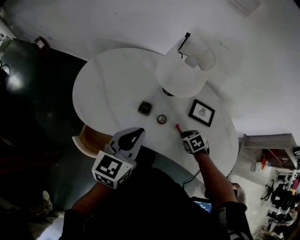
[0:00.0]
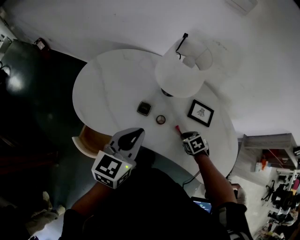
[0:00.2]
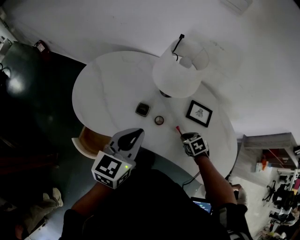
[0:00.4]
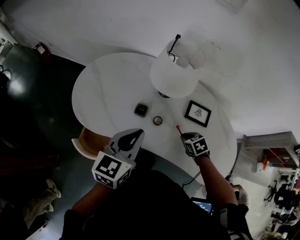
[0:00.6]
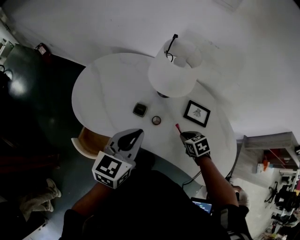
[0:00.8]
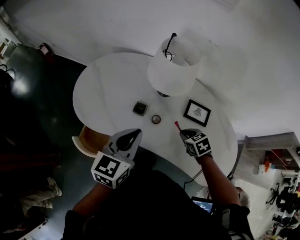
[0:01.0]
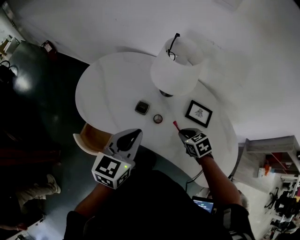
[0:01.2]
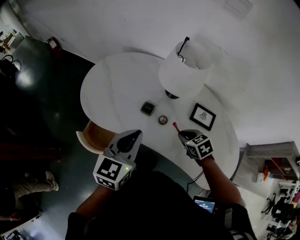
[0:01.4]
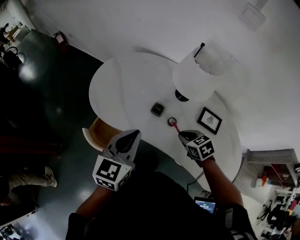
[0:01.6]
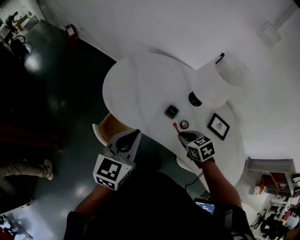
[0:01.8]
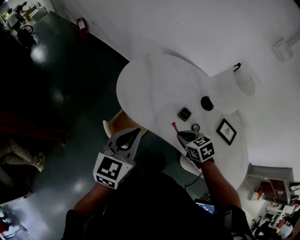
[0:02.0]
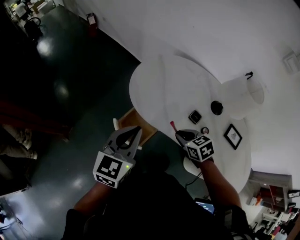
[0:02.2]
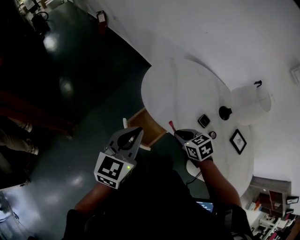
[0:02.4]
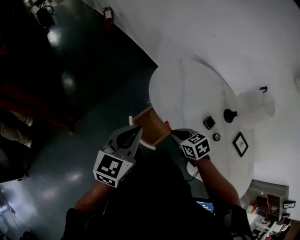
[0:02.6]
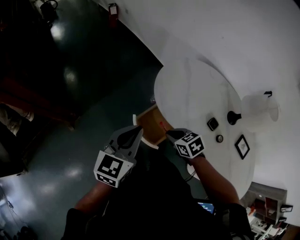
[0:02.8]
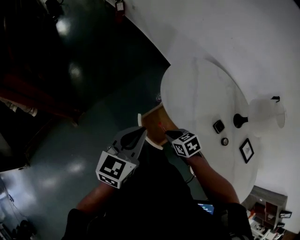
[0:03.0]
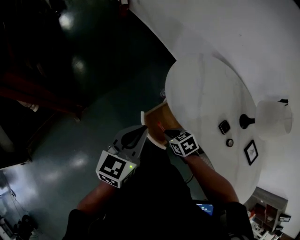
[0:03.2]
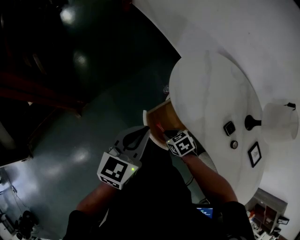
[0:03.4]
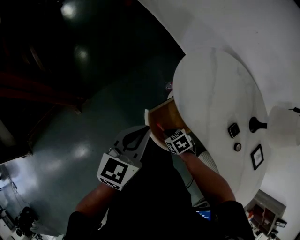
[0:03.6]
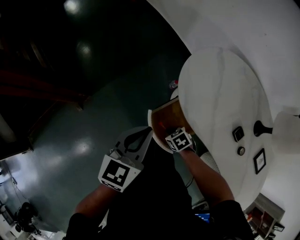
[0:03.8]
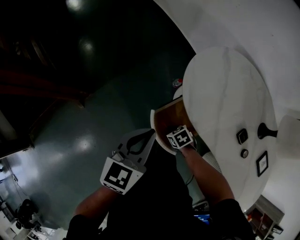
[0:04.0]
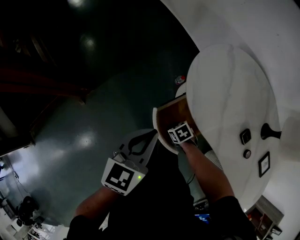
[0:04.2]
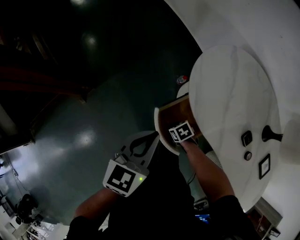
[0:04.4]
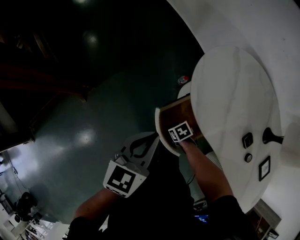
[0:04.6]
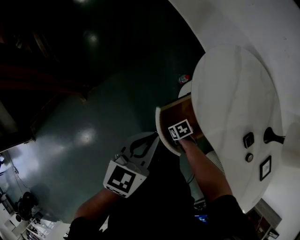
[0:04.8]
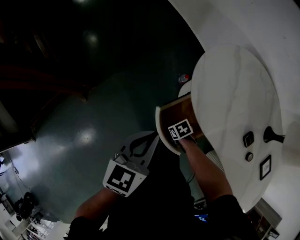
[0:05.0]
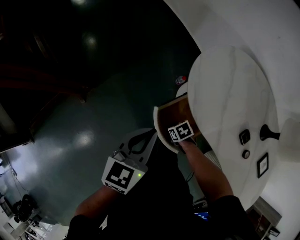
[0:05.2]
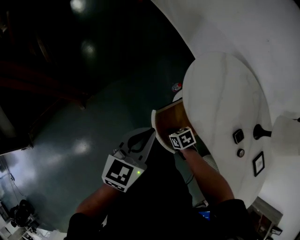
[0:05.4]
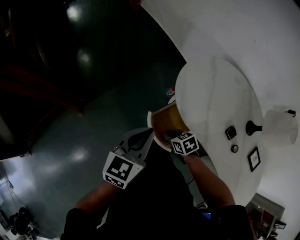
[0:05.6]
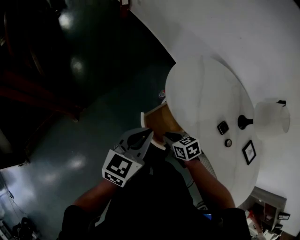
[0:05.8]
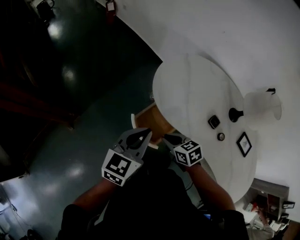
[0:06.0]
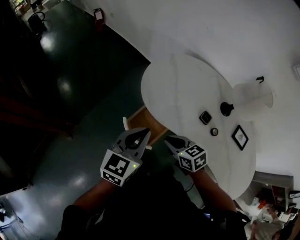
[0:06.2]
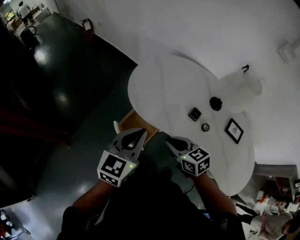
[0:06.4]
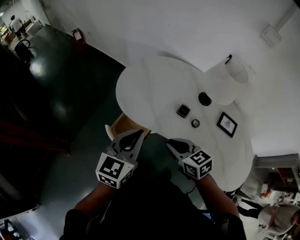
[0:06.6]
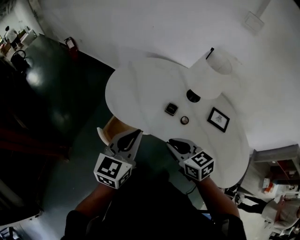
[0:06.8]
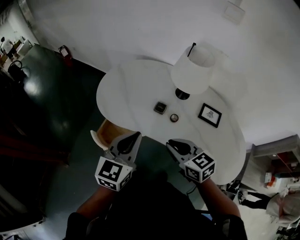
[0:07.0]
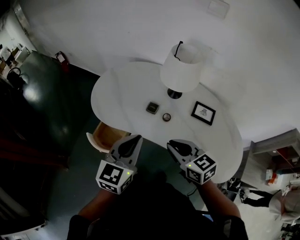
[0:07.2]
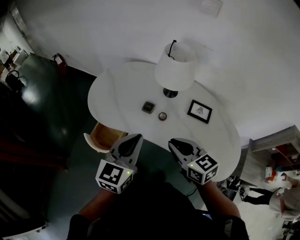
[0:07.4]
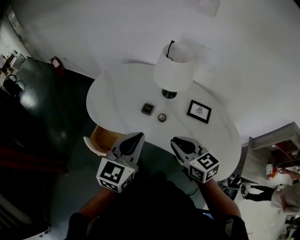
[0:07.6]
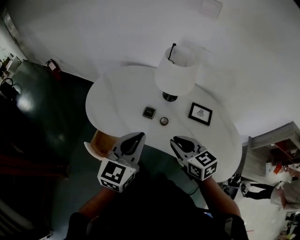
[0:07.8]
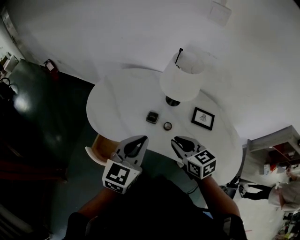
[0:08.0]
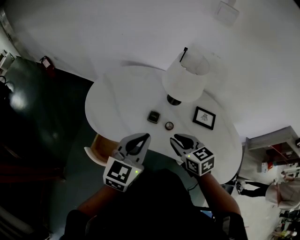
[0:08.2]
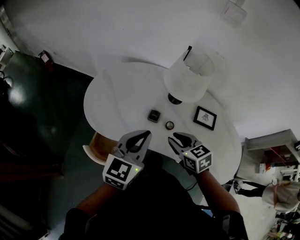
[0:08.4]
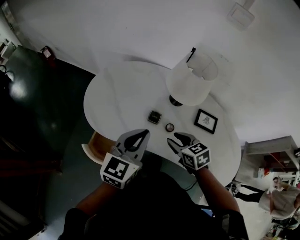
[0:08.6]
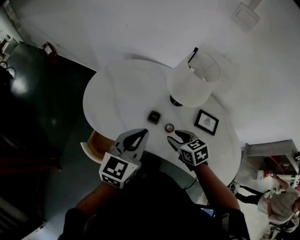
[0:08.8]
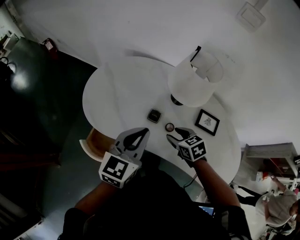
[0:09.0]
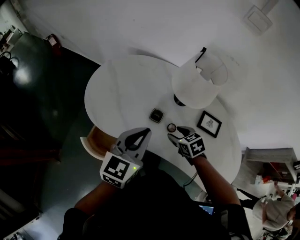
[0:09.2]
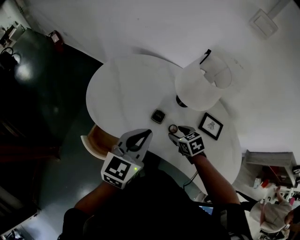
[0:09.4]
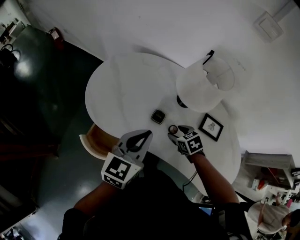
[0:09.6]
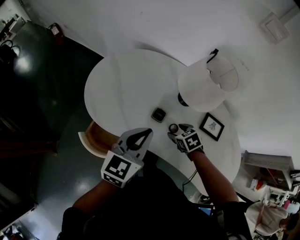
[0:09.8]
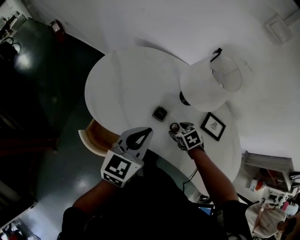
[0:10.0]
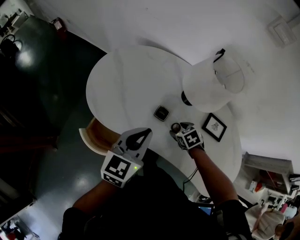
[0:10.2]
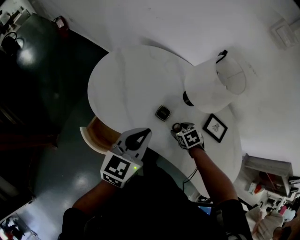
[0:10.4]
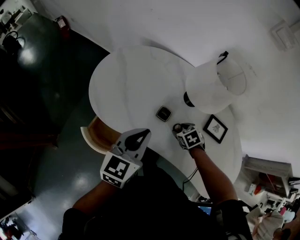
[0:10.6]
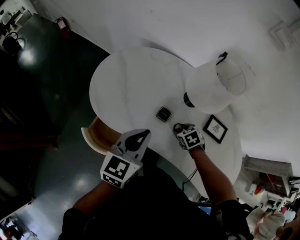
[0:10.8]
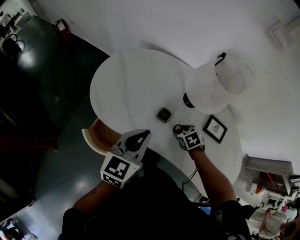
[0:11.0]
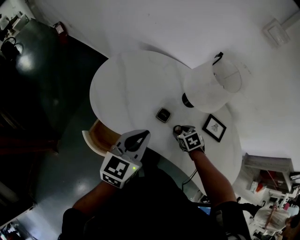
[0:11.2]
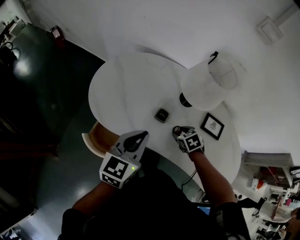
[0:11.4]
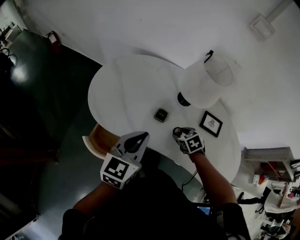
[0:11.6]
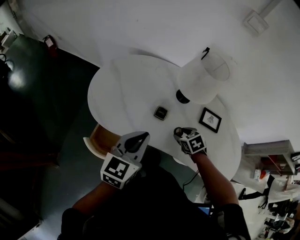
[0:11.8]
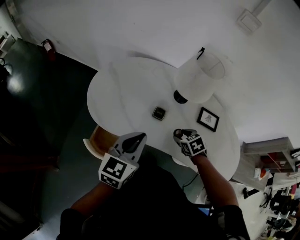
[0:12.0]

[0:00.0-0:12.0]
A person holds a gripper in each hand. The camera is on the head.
0:00.0 to 0:01.6: The right gripper goes some 15 cm upward and to the left, and changes its angle by approximately 20 degrees. The left gripper travels to the left by roughly 5 cm.
0:01.6 to 0:03.0: The right gripper changes place by approximately 40 cm, and turns by some 30 degrees. Meanwhile the left gripper ends up approximately 30 cm from where it was.
0:03.0 to 0:04.4: The right gripper moves downward, roughly 25 cm, and turns by approximately 20 degrees. Meanwhile the left gripper goes roughly 10 cm downward.
0:04.4 to 0:06.0: The right gripper shifts about 25 cm upward, and turns by about 30 degrees; the left gripper travels upward by about 10 cm.
0:06.0 to 0:07.6: The left gripper ends up some 35 cm from where it was, and changes its angle by approximately 20 degrees. The right gripper changes place by some 40 cm, and changes its angle by about 40 degrees.
0:07.6 to 0:09.0: The left gripper shifts some 10 cm forward. The right gripper travels forward and downward by roughly 20 cm, changes its angle by about 30 degrees, and opens its fingers.
0:09.0 to 0:10.4: The right gripper goes roughly 10 cm downward, and changes its angle by some 20 degrees.
0:10.4 to 0:12.0: The right gripper travels upward and backward by approximately 10 cm. The left gripper moves roughly 5 cm.

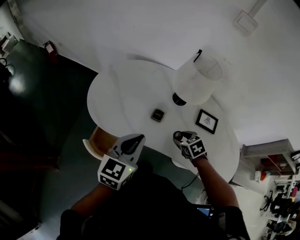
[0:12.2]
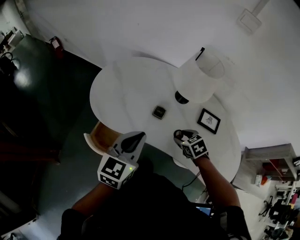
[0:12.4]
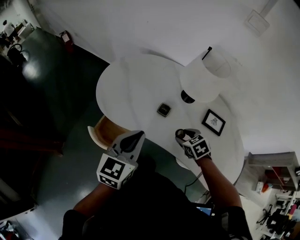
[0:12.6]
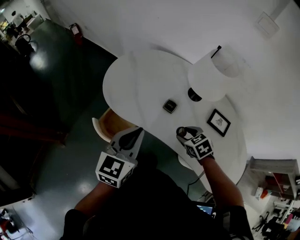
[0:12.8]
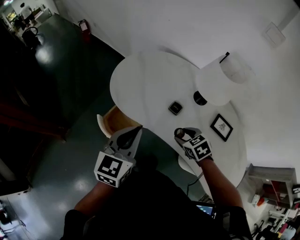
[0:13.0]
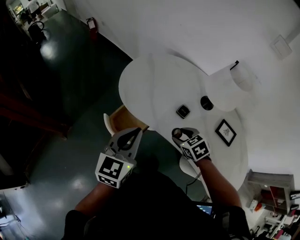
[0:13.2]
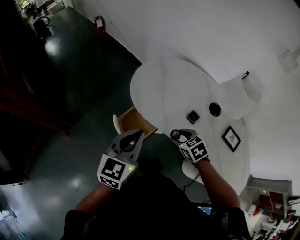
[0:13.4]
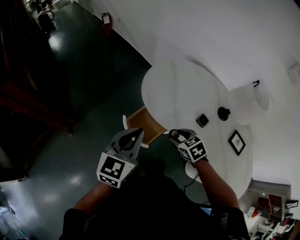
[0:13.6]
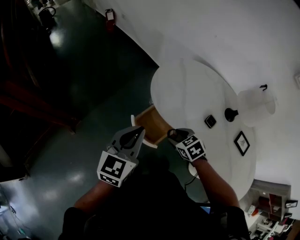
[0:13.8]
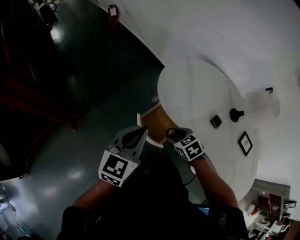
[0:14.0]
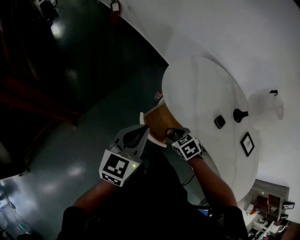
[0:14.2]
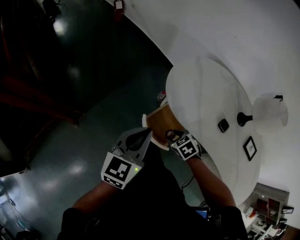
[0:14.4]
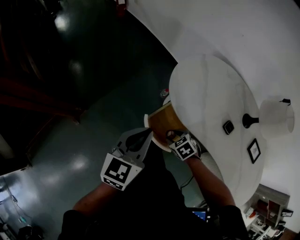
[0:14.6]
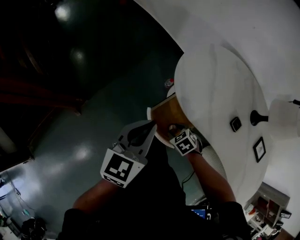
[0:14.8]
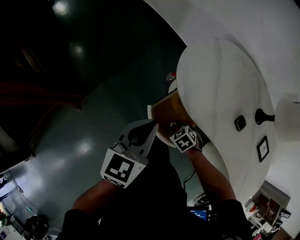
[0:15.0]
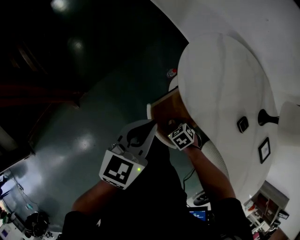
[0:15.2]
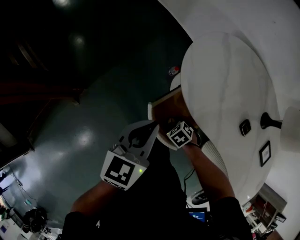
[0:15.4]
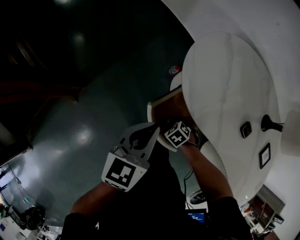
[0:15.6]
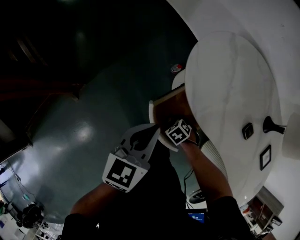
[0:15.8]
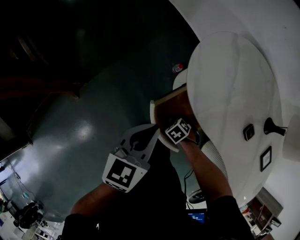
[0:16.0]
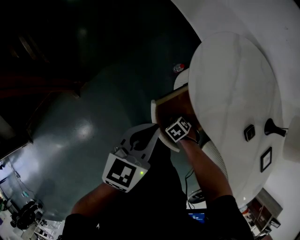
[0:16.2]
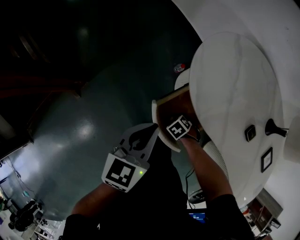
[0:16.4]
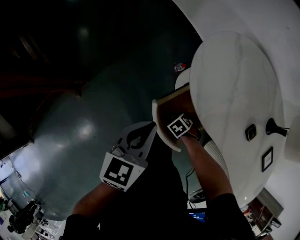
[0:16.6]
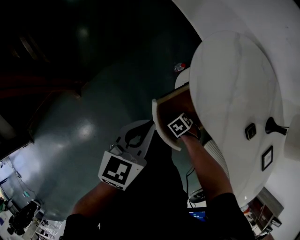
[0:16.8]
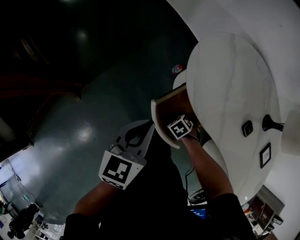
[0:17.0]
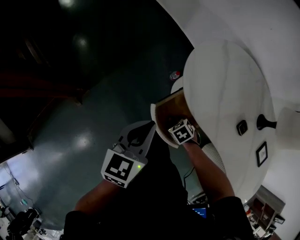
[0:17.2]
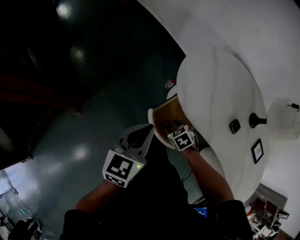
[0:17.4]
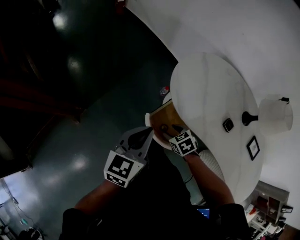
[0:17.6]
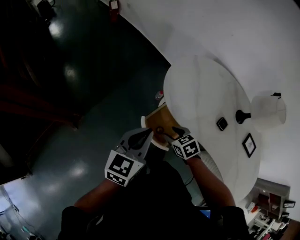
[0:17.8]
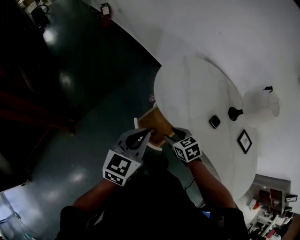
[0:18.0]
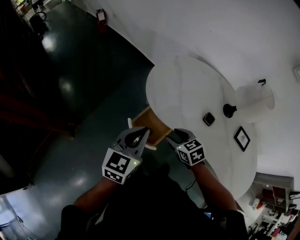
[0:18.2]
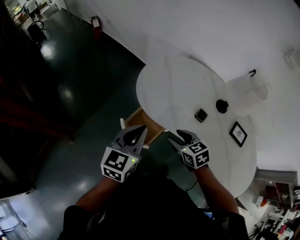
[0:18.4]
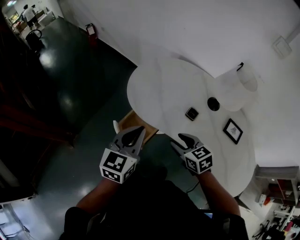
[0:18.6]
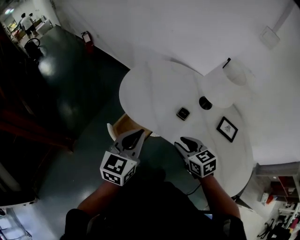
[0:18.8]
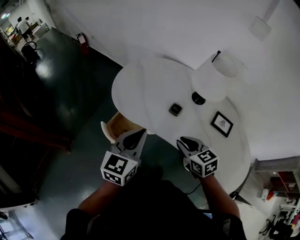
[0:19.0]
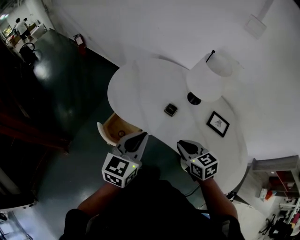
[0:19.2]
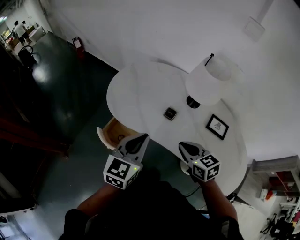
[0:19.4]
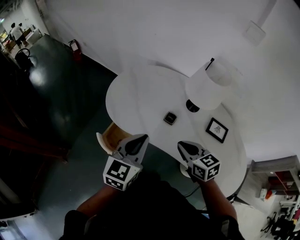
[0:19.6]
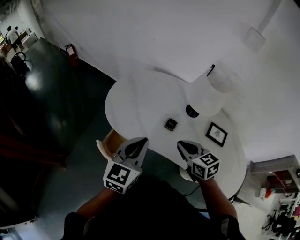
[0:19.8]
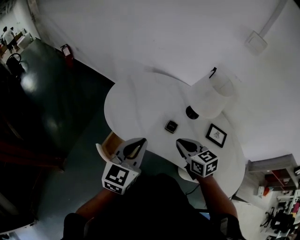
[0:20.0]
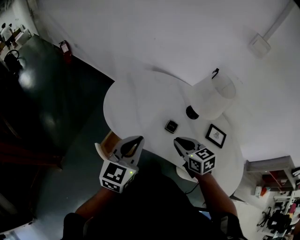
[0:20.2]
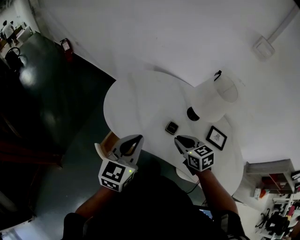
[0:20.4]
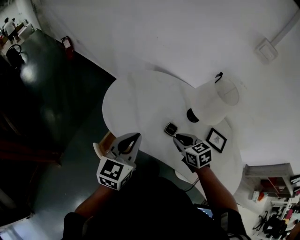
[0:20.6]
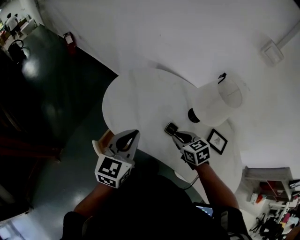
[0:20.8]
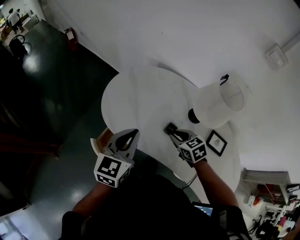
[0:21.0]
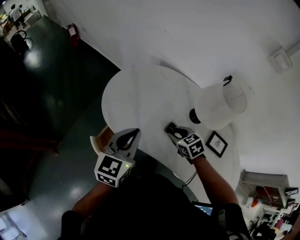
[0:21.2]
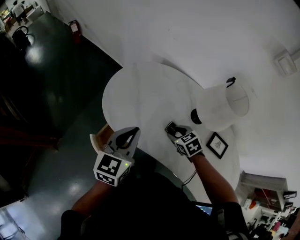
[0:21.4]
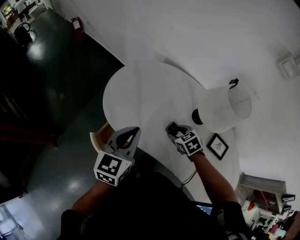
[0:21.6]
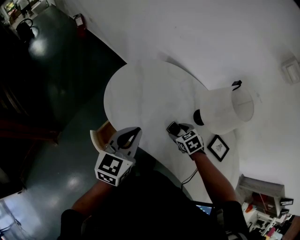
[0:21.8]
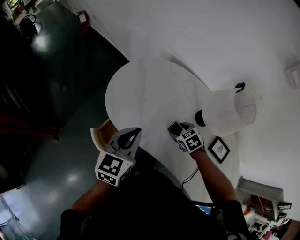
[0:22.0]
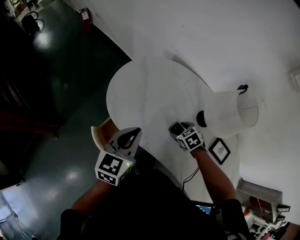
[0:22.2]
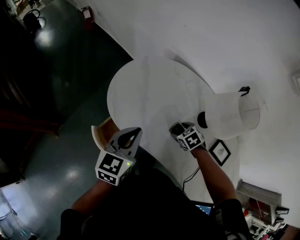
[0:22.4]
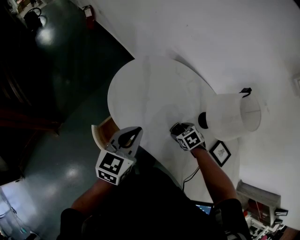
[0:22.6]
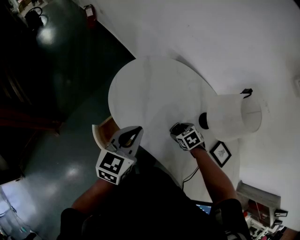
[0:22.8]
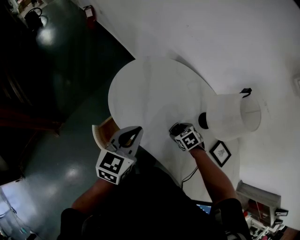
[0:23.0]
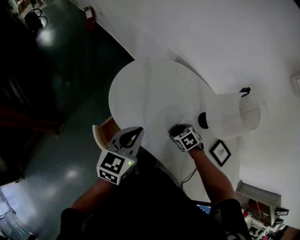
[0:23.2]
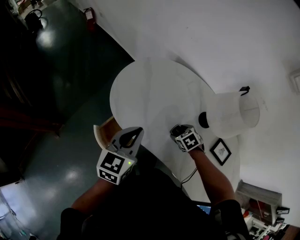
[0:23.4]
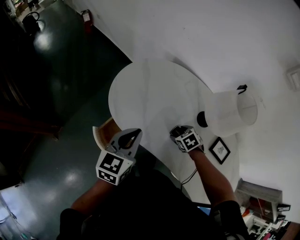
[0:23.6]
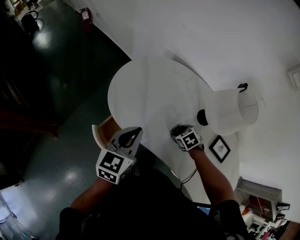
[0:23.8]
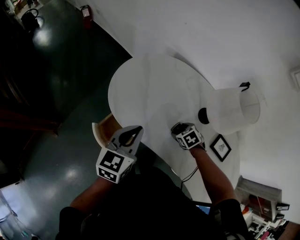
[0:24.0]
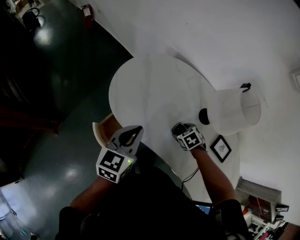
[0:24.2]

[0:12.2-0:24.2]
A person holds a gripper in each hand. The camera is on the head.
0:12.2 to 0:13.8: The right gripper shifts by approximately 30 cm, and turns by about 30 degrees, while the left gripper changes place by about 25 cm, and rotates some 30 degrees.
0:13.8 to 0:15.2: The right gripper is displaced downward by approximately 25 cm, while the left gripper travels downward and forward by roughly 15 cm.
0:15.2 to 0:16.6: The right gripper moves downward, some 10 cm; the left gripper is displaced downward by some 5 cm.
0:16.6 to 0:18.2: The left gripper moves upward, about 15 cm, while the right gripper shifts approximately 35 cm upward, and tips its fingers upward by some 30 degrees.
0:18.2 to 0:19.8: The left gripper shifts approximately 20 cm to the right. The right gripper goes some 25 cm to the right and upward, swivels roughly 30 degrees, and closes its fingers.
0:19.8 to 0:21.2: The right gripper travels forward and downward by roughly 15 cm, and rotates roughly 30 degrees. The left gripper moves forward, roughly 10 cm.
0:21.2 to 0:22.6: The right gripper goes some 10 cm downward, changes its angle by roughly 20 degrees, and opens.
0:22.6 to 0:24.2: The grippers move only a little.
